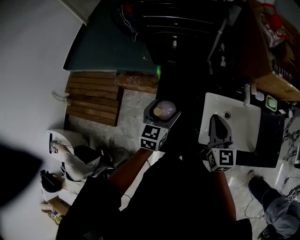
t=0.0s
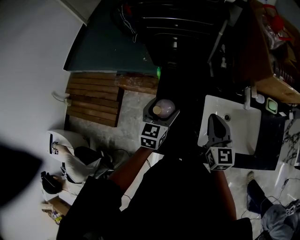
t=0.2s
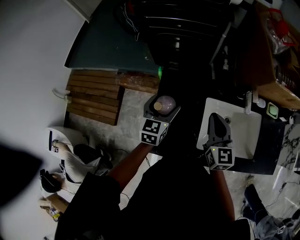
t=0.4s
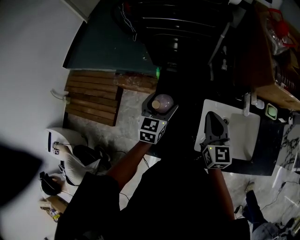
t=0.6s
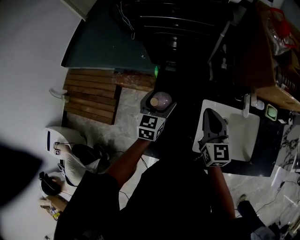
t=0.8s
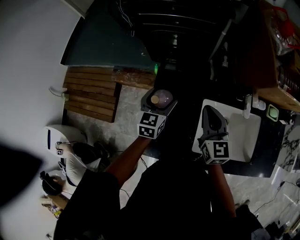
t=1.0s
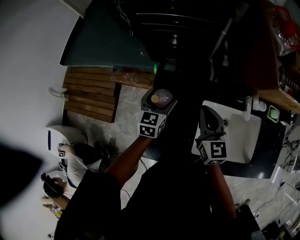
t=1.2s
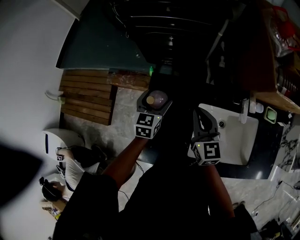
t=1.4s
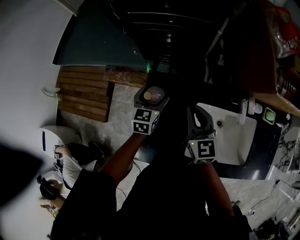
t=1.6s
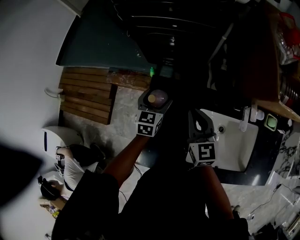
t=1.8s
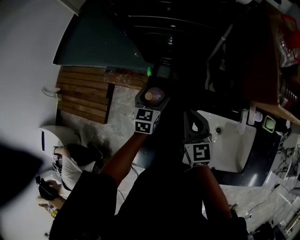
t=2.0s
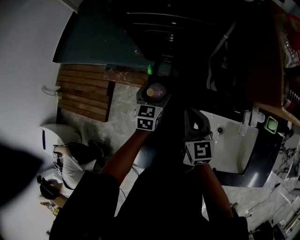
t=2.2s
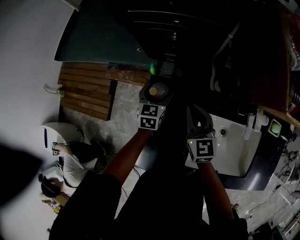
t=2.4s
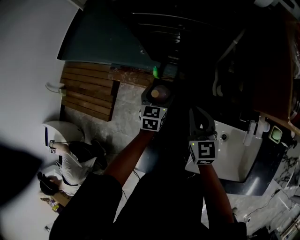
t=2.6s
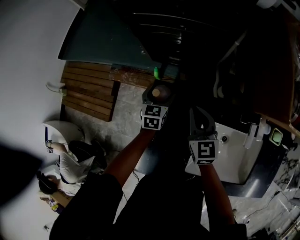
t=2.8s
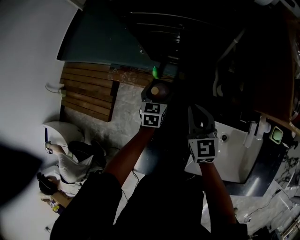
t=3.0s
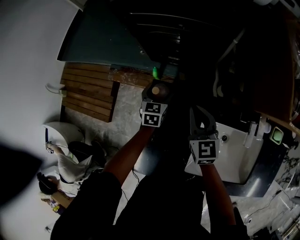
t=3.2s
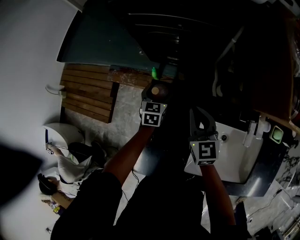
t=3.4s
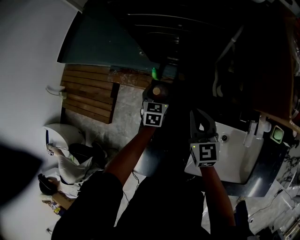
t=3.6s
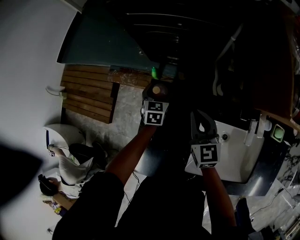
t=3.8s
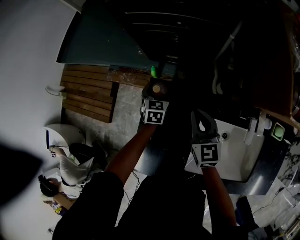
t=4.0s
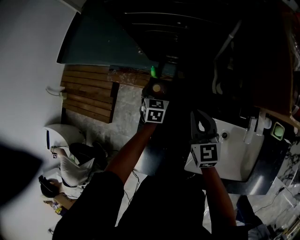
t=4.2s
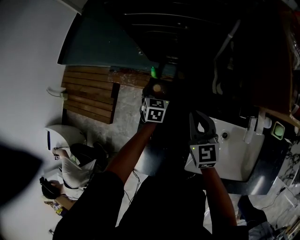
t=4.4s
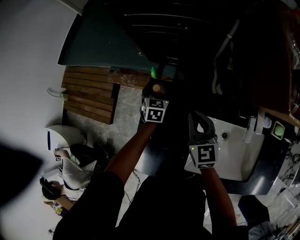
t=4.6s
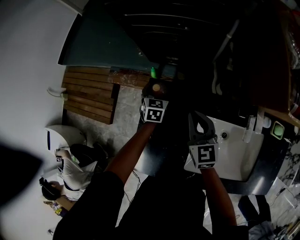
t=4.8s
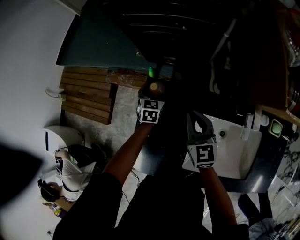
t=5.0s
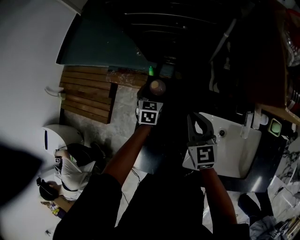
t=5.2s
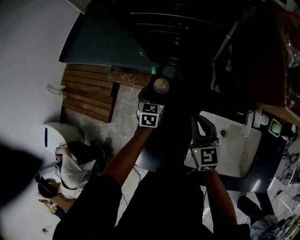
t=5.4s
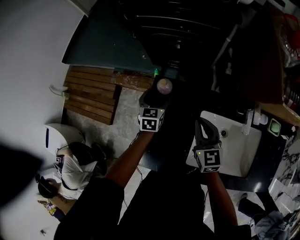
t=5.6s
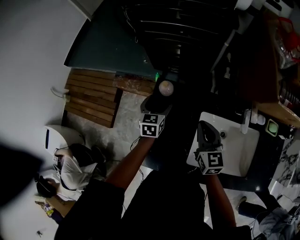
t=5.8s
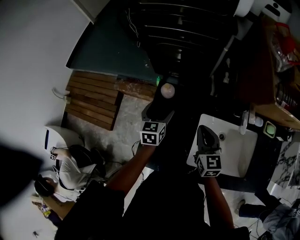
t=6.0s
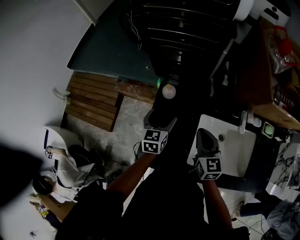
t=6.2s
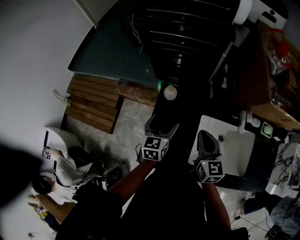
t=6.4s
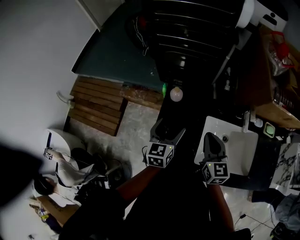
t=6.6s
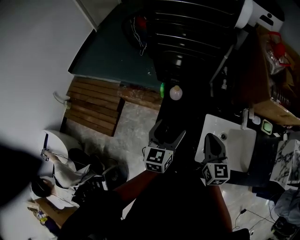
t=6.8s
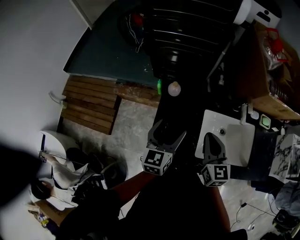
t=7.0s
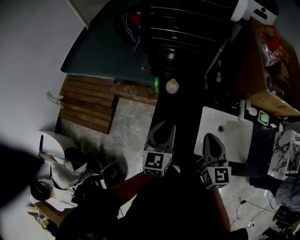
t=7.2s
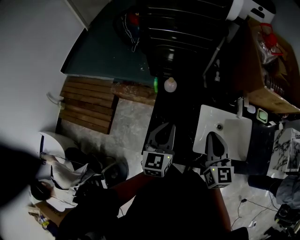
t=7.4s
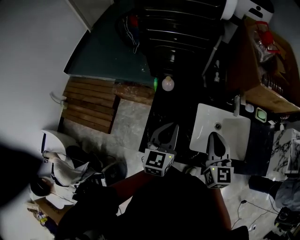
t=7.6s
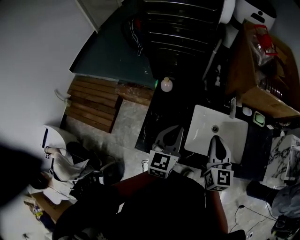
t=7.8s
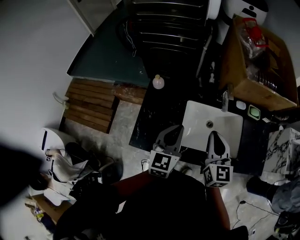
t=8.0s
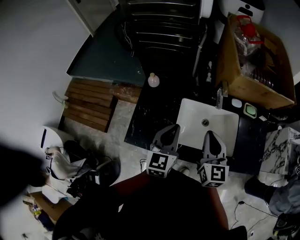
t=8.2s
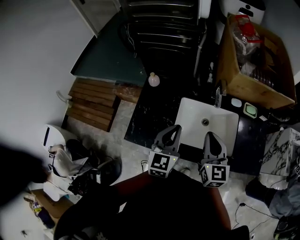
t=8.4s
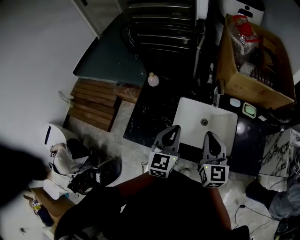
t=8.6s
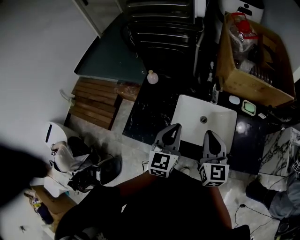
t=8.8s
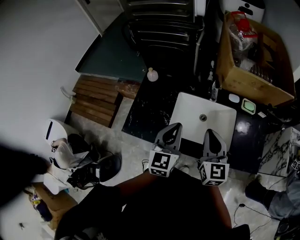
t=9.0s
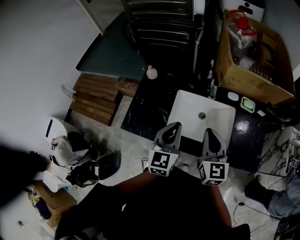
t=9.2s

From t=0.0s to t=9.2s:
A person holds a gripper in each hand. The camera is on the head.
From t=0.0s to t=1.6s: The left gripper travels forward and downward by about 15 cm, while the right gripper moves forward and to the left, approximately 15 cm.
From t=1.6s to t=3.0s: The left gripper goes approximately 10 cm downward and forward. The right gripper goes roughly 10 cm forward and downward.
From t=3.0s to t=4.6s: There are only small adjustments of the grippers.
From t=4.6s to t=6.2s: The left gripper moves backward and upward, roughly 20 cm. Meanwhile the right gripper travels backward by roughly 10 cm.
From t=6.2s to t=7.6s: The grippers both shift backward and upward by some 15 cm. The left gripper closes.
From t=7.6s to t=9.2s: Both grippers travel together to the right and backward, roughly 20 cm.

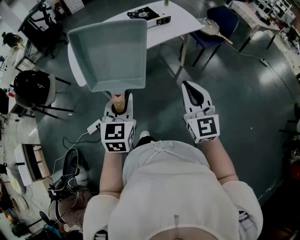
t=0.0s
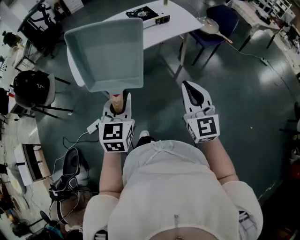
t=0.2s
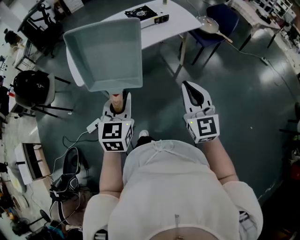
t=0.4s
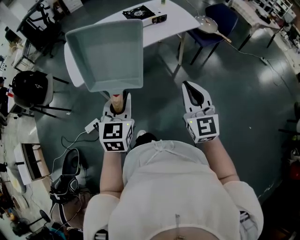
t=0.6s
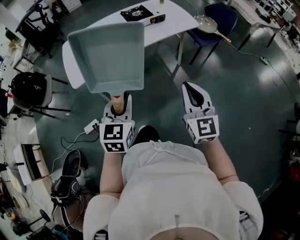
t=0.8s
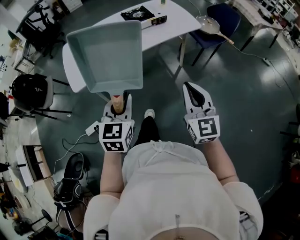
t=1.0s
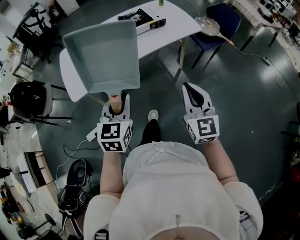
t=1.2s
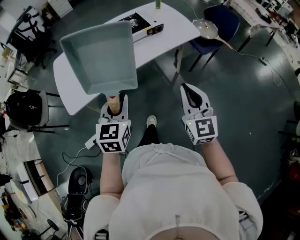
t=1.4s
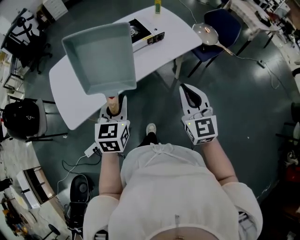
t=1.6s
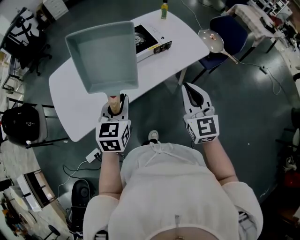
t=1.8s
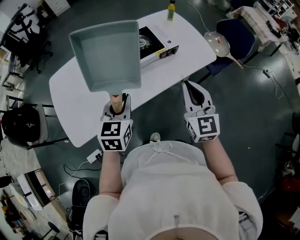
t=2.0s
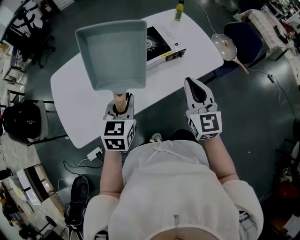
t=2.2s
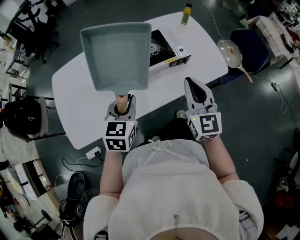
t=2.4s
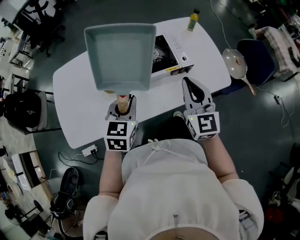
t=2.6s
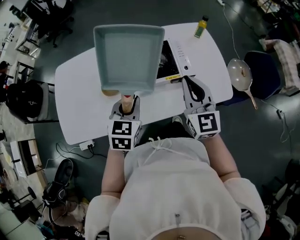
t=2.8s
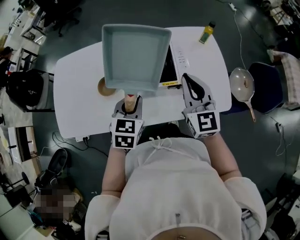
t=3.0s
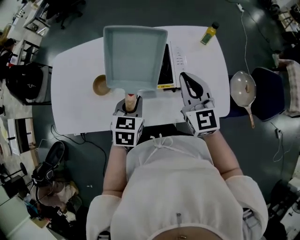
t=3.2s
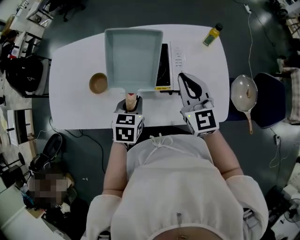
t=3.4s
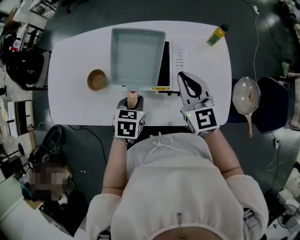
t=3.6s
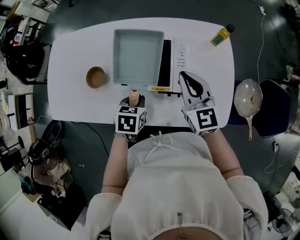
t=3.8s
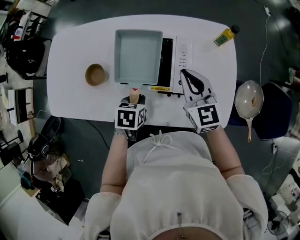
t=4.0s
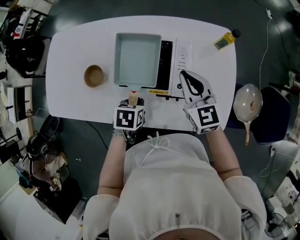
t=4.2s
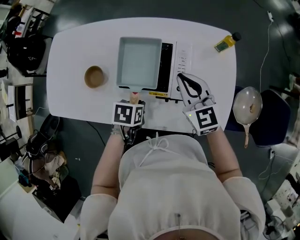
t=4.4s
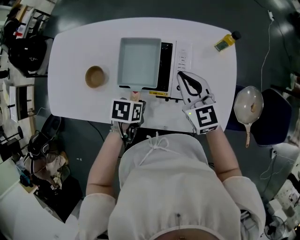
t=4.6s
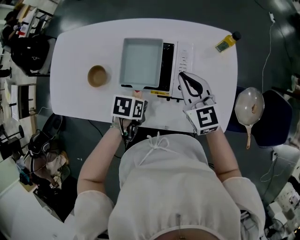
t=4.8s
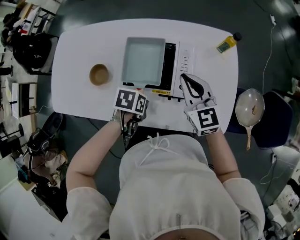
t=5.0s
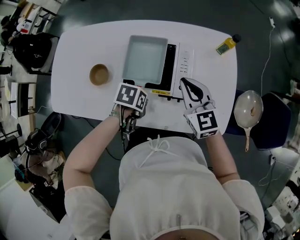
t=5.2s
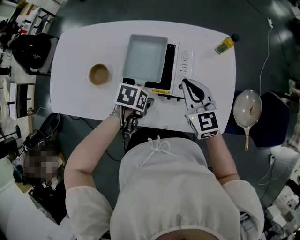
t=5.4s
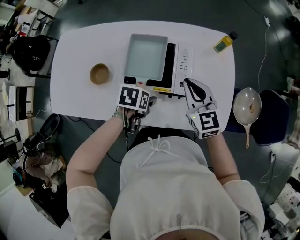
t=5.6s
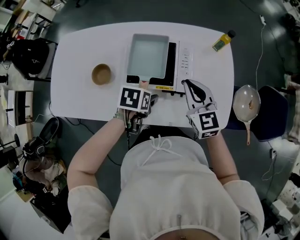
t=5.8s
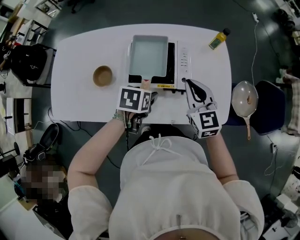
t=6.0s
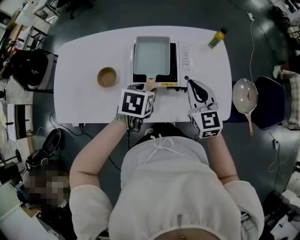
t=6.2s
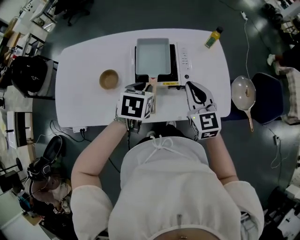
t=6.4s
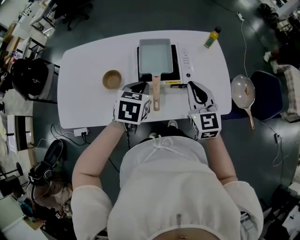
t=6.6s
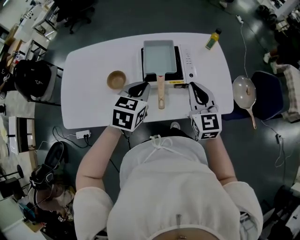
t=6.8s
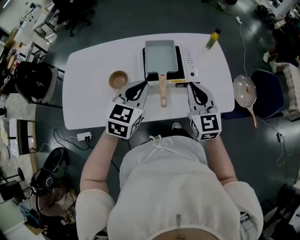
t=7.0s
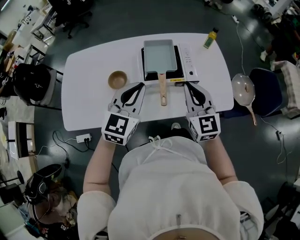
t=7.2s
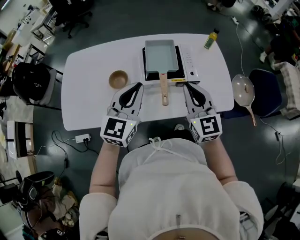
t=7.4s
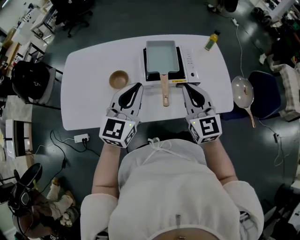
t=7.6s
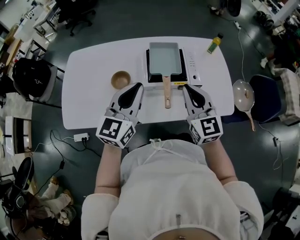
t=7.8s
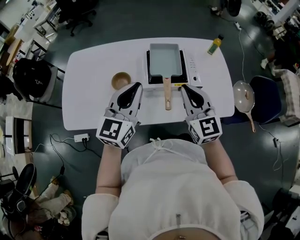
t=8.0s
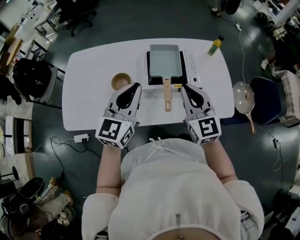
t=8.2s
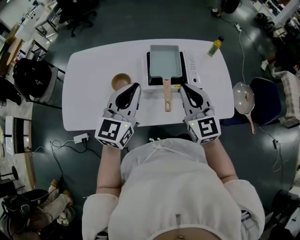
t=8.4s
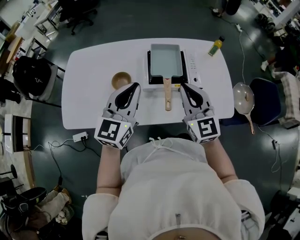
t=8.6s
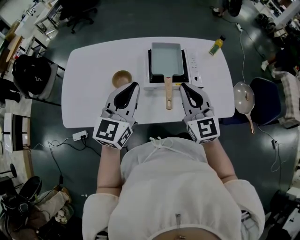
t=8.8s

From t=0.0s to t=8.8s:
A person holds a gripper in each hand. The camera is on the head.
From t=0.0s to t=1.4s: The two grippers go roughly 20 cm forward.
From t=1.4s to t=3.0s: The two grippers travel together, forward, approximately 50 cm. The right gripper swivels roughly 20 degrees; the left gripper turns by approximately 20 degrees.
From t=3.0s to t=4.4s: The right gripper heads forward and downward, covering roughly 15 cm, and swivels approximately 30 degrees. Meanwhile the left gripper heads downward and to the right, covering approximately 15 cm, and tilts its fingers roughly 30 degrees downward.
From t=4.4s to t=5.8s: The right gripper shifts approximately 5 cm backward; the left gripper opens up.
From t=5.8s to t=7.4s: The right gripper is displaced backward, upward and to the left by some 20 cm; the left gripper shifts roughly 25 cm upward and to the left, tilts its fingers roughly 60 degrees upward, and closes.
From t=7.4s to t=8.8s: The grippers make only small movements.

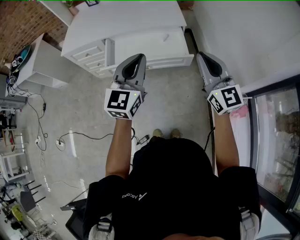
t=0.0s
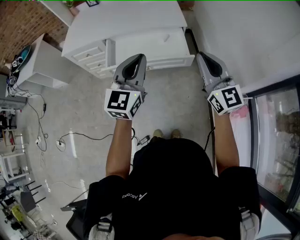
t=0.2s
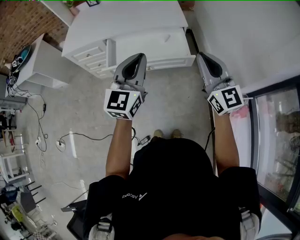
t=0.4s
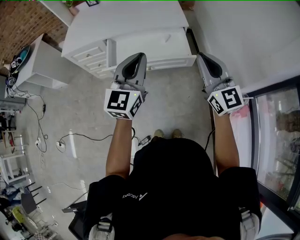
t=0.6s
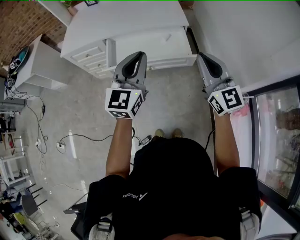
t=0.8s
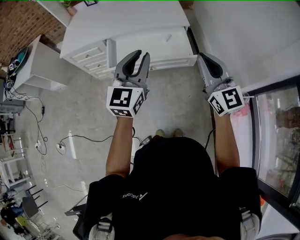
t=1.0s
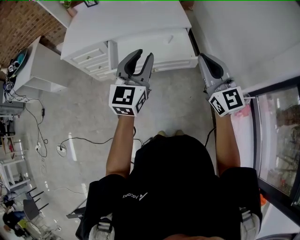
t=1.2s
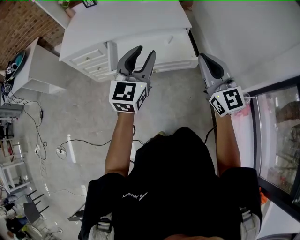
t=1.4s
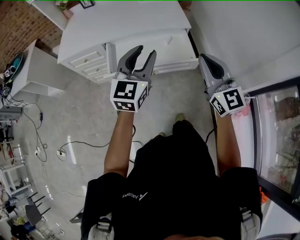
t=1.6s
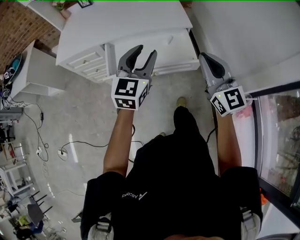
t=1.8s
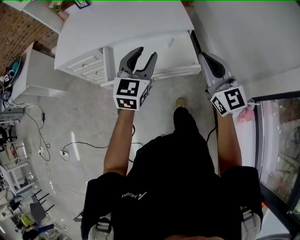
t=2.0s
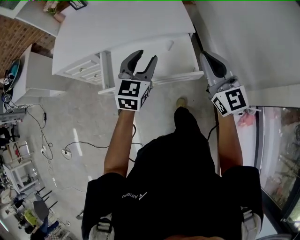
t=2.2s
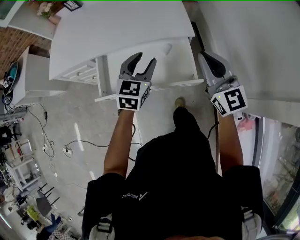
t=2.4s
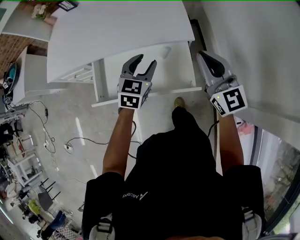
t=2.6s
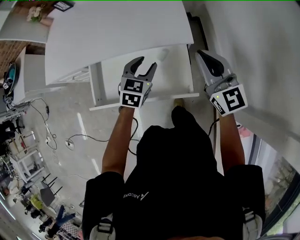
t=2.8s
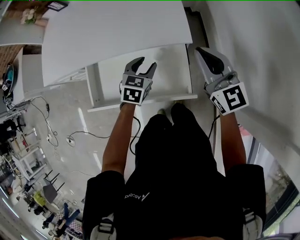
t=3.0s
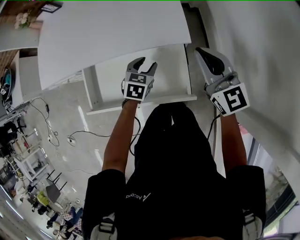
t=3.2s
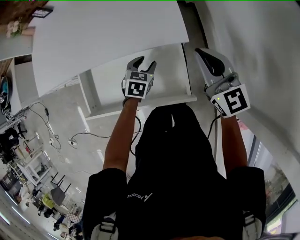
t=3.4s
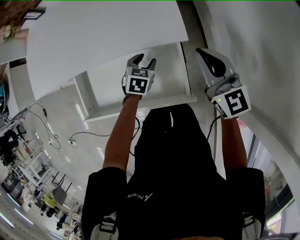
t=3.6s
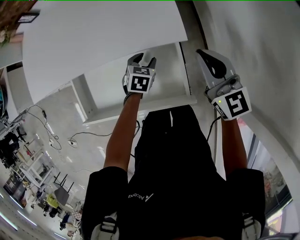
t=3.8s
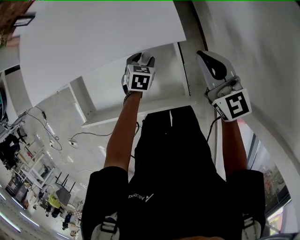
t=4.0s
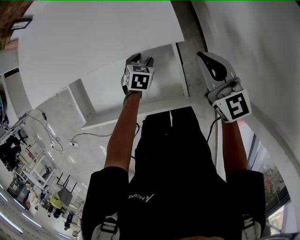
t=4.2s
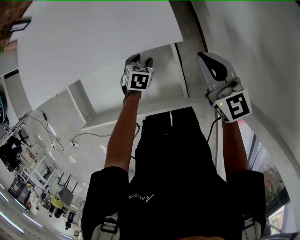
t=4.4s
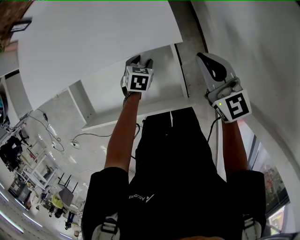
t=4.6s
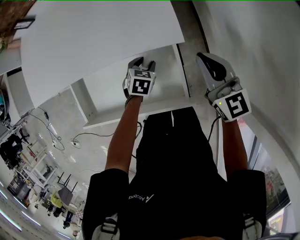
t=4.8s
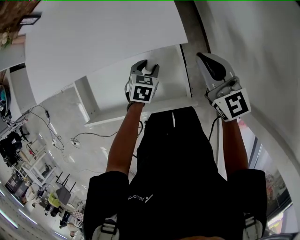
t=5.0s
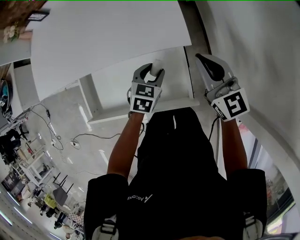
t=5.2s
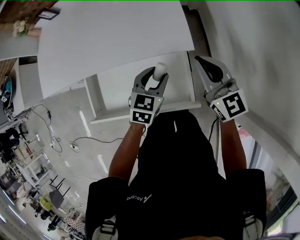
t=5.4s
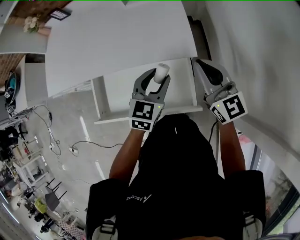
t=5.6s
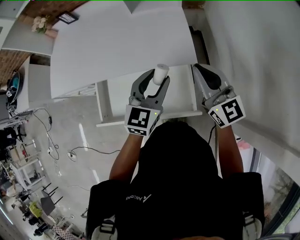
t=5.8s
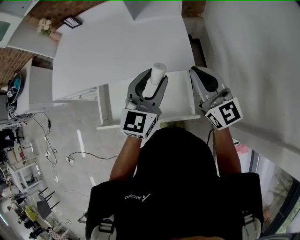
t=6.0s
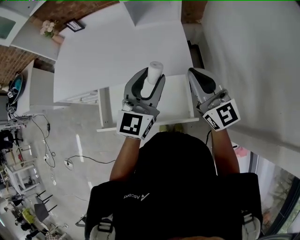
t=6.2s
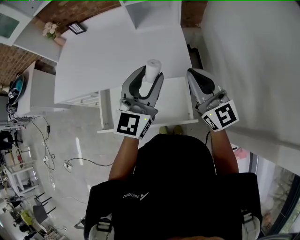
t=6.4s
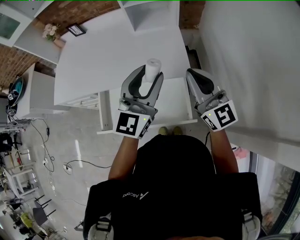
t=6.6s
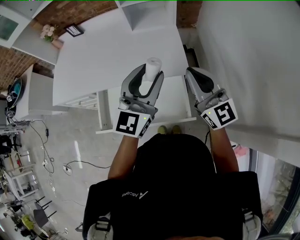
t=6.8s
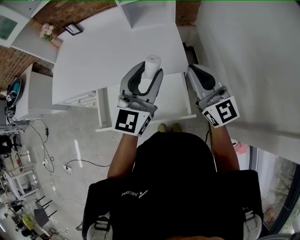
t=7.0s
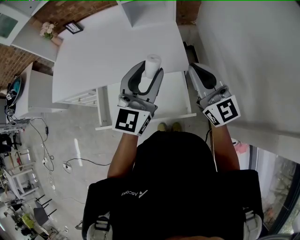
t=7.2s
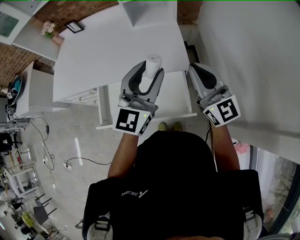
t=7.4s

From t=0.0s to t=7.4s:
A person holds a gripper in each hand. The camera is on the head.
From t=0.0s to t=1.4s: The left gripper is displaced to the left and forward by roughly 10 cm, and opens up; the right gripper travels to the left by roughly 10 cm.
From t=1.4s to t=3.0s: The right gripper goes about 40 cm forward. The left gripper is displaced forward and downward by some 50 cm, and angles its fingers downward, by approximately 40 degrees.
From t=3.0s to t=4.4s: The right gripper heads downward, covering some 10 cm, while the left gripper is displaced downward by approximately 20 cm.
From t=4.4s to t=6.0s: The right gripper moves upward and to the left, about 20 cm. The left gripper travels upward by some 40 cm, and points its fingers approximately 60 degrees further upward.
From t=6.0s to t=7.4s: The right gripper ends up some 5 cm from where it was. The left gripper goes approximately 10 cm upward.
